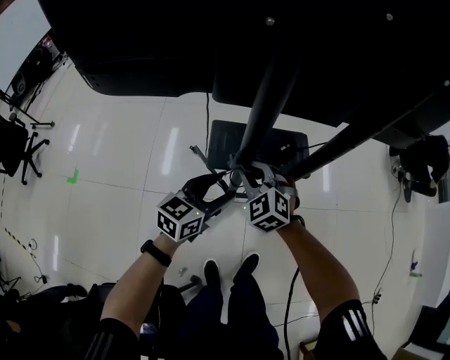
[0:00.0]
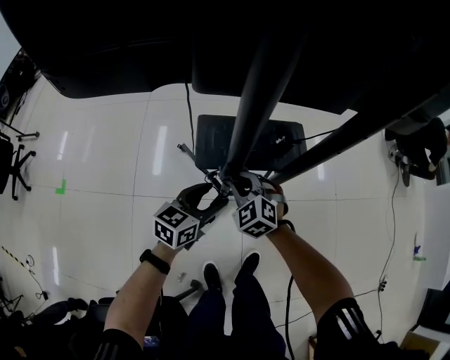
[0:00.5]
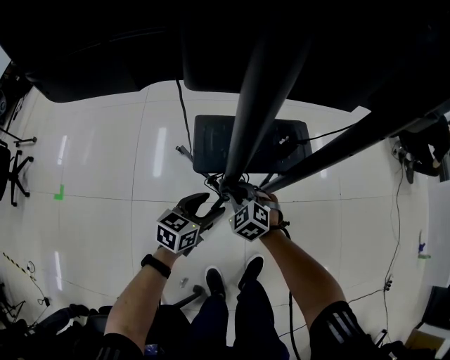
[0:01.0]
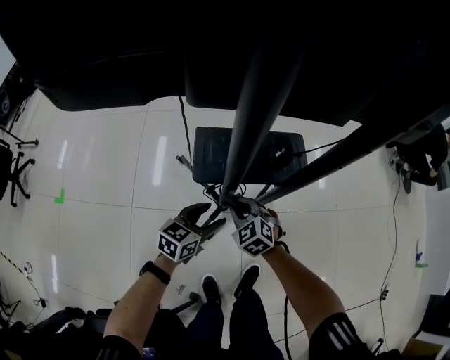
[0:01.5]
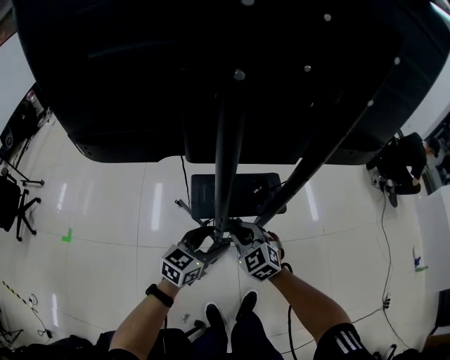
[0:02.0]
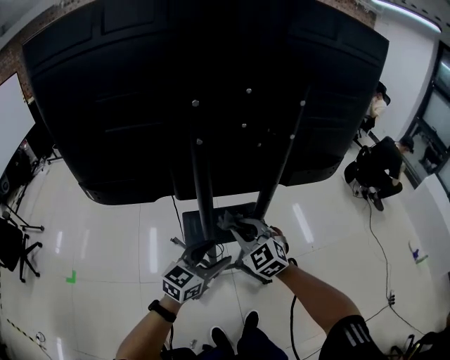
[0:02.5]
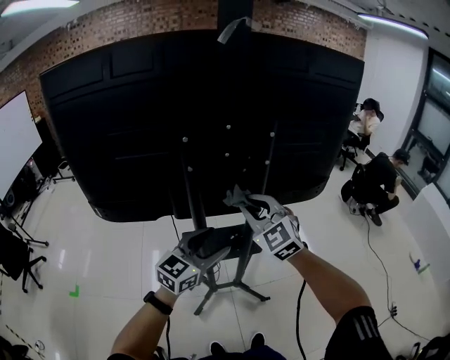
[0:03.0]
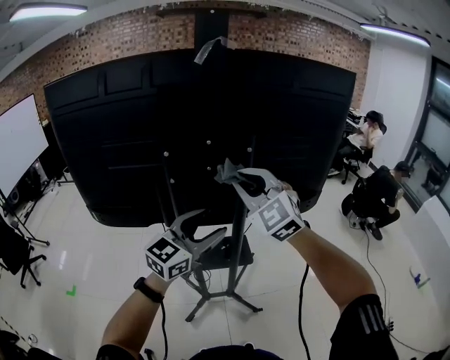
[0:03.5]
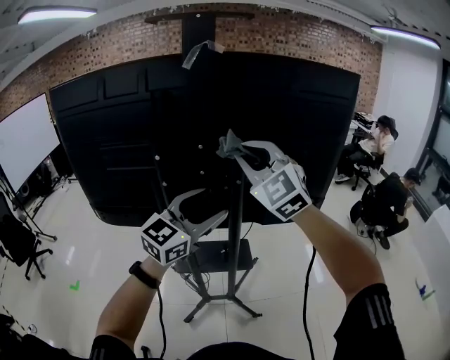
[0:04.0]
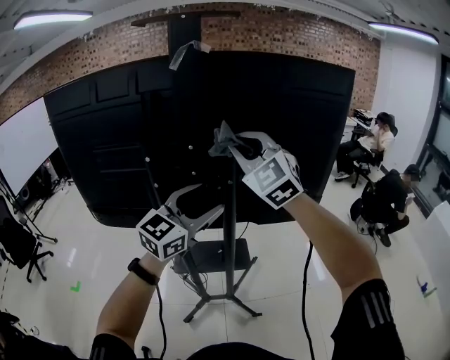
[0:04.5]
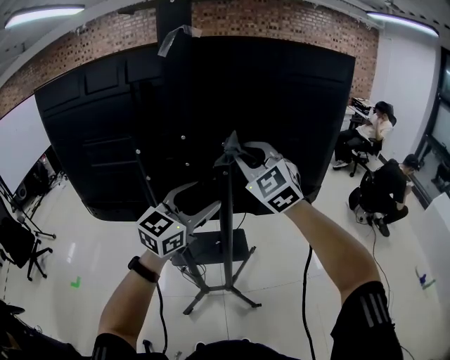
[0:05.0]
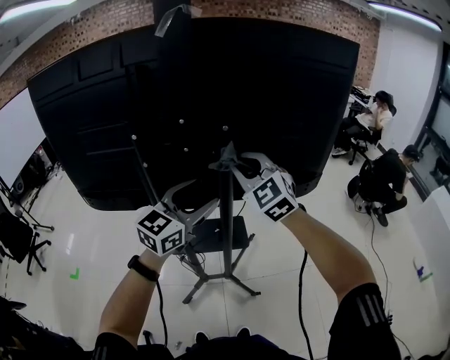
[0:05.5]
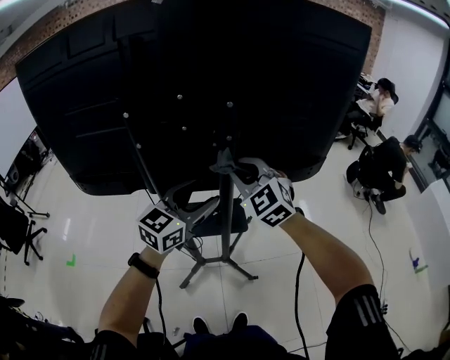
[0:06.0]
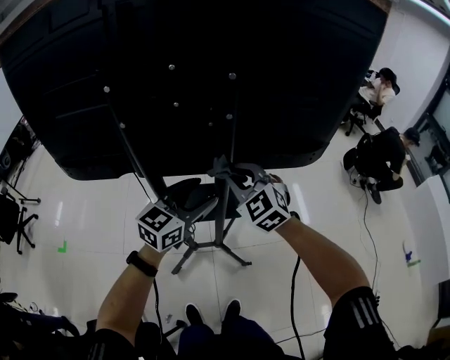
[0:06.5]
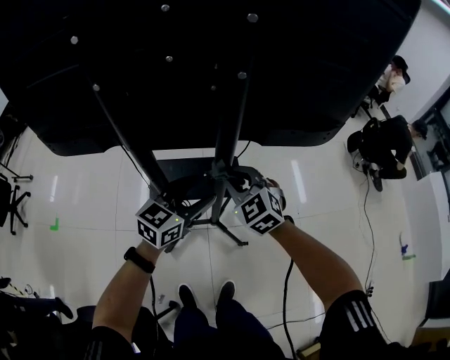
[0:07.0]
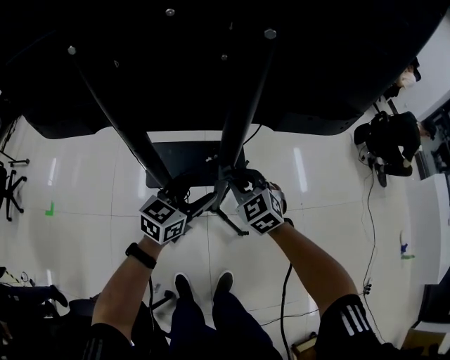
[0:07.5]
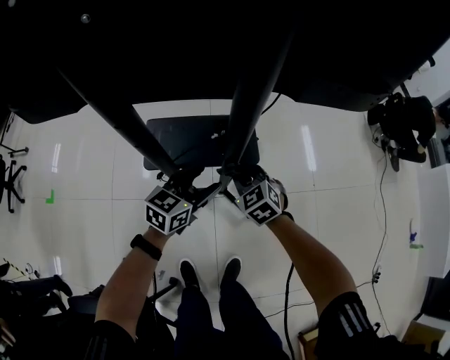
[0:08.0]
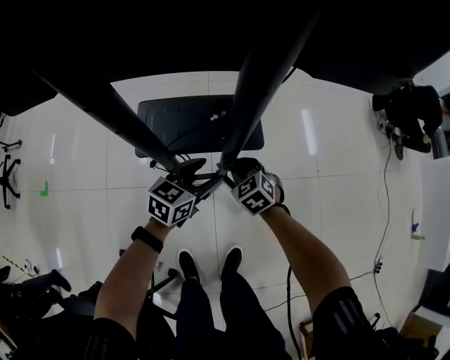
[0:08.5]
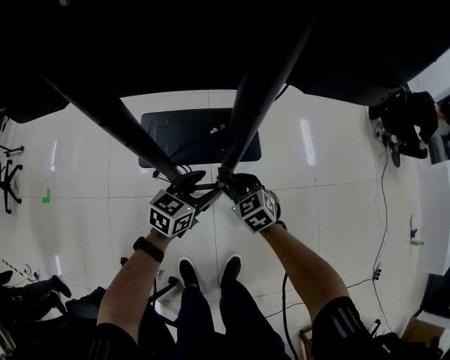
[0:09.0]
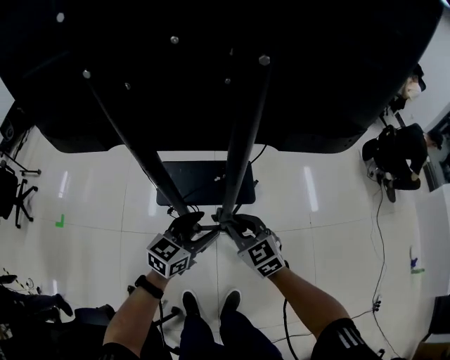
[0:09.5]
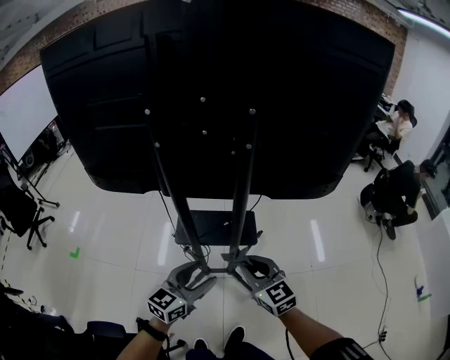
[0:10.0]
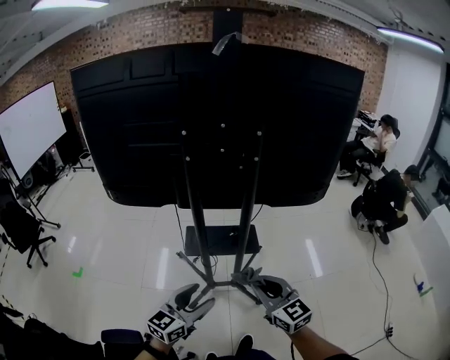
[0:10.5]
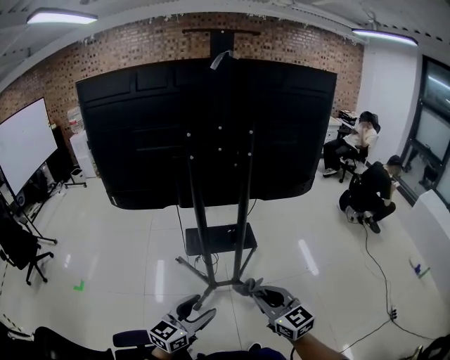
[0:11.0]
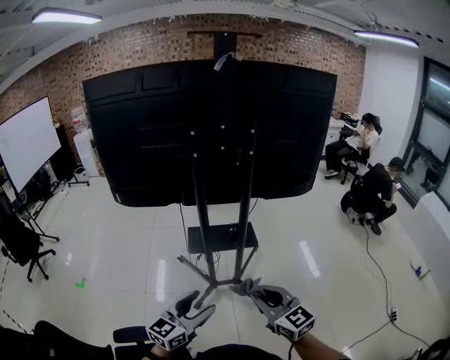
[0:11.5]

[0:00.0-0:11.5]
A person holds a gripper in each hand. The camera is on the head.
0:00.0 to 0:02.0: The right gripper goes downward and returns, some 20 cm each way. Meanwhile the left gripper travels downward and back again, about 20 cm each way.
0:02.0 to 0:04.0: Both grippers move upward, roughly 50 cm. The right gripper tilts its fingers roughly 30 degrees upward, while the left gripper swivels approximately 40 degrees.
0:04.0 to 0:06.0: The left gripper shifts roughly 15 cm downward. The right gripper shifts roughly 20 cm downward.
0:06.0 to 0:07.5: The grippers both shift downward by roughly 30 cm. The right gripper changes its angle by approximately 20 degrees.
0:07.5 to 0:09.5: The right gripper moves backward, about 10 cm, and goes downward and returns, approximately 25 cm each way, while the left gripper is displaced backward by roughly 5 cm, and moves approximately 20 cm downward and comes back.
0:09.5 to 0:11.5: The grippers both shift backward and upward by approximately 40 cm. The right gripper swivels approximately 20 degrees.

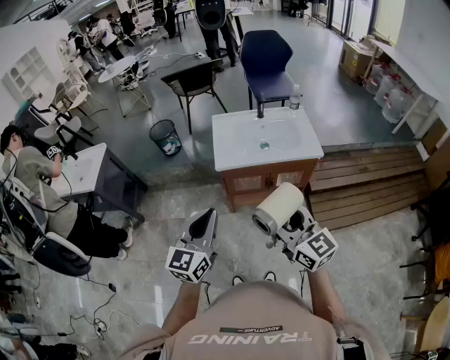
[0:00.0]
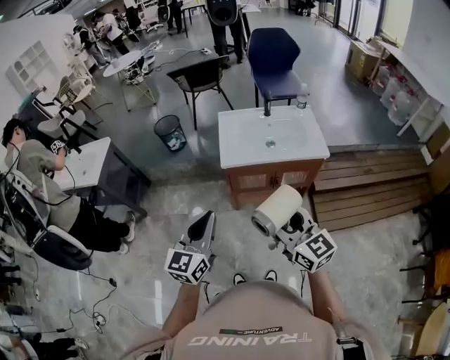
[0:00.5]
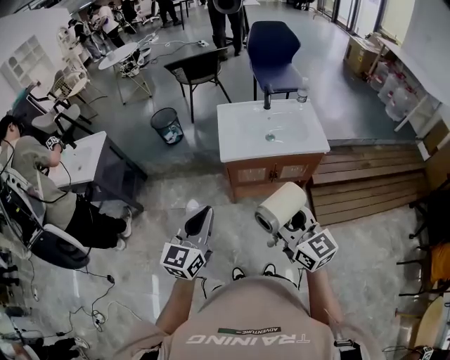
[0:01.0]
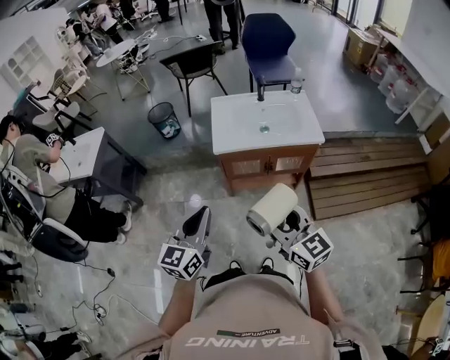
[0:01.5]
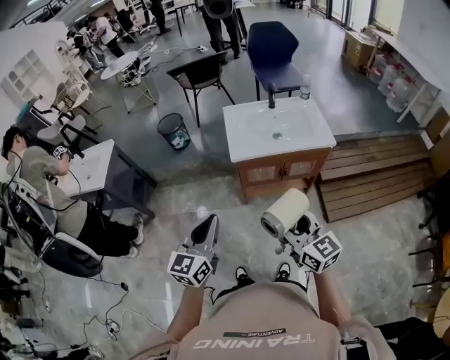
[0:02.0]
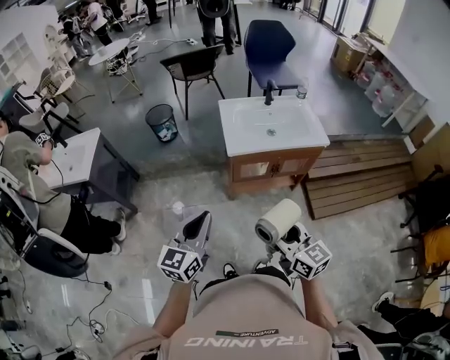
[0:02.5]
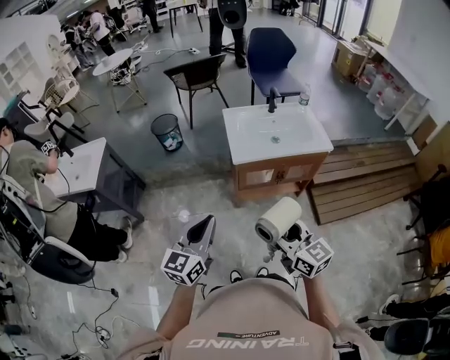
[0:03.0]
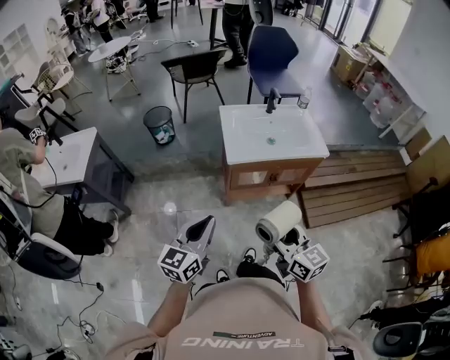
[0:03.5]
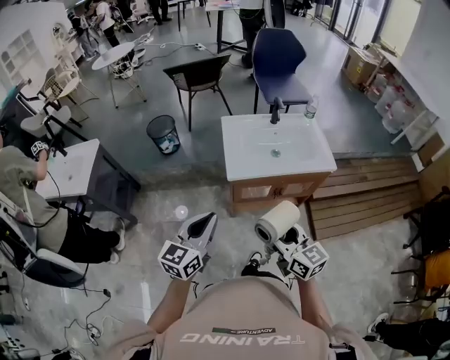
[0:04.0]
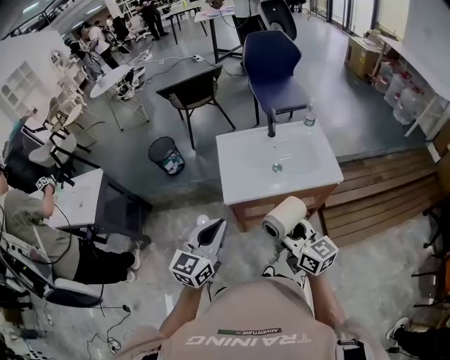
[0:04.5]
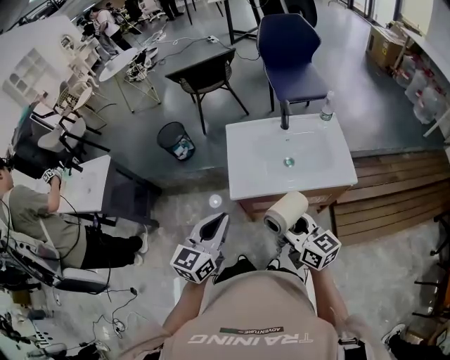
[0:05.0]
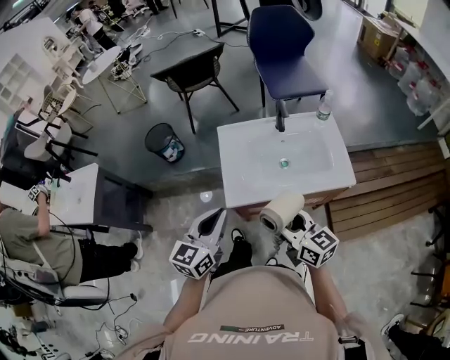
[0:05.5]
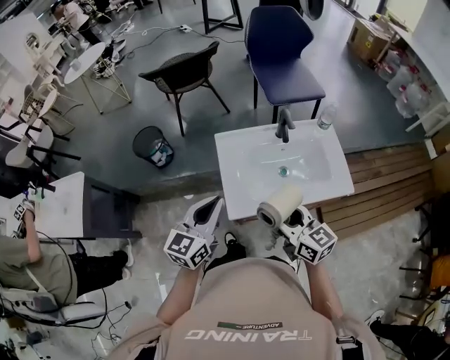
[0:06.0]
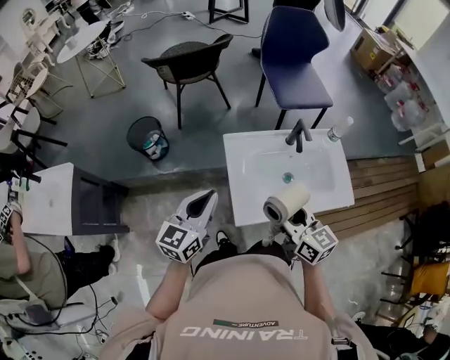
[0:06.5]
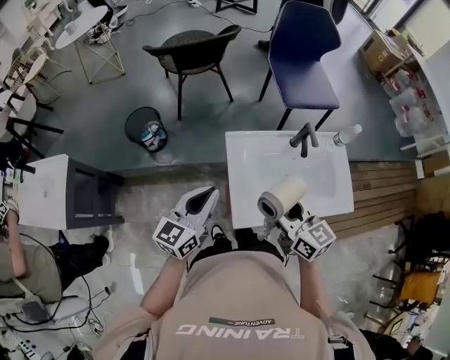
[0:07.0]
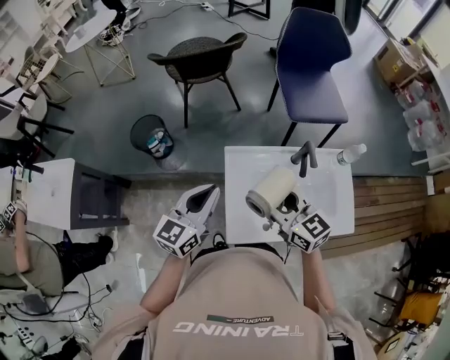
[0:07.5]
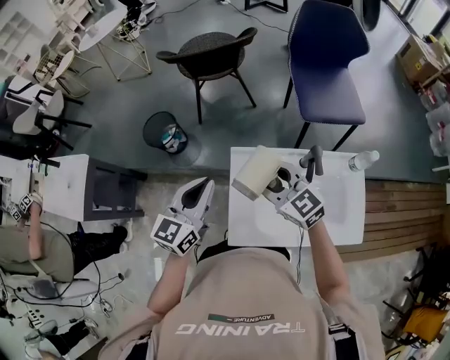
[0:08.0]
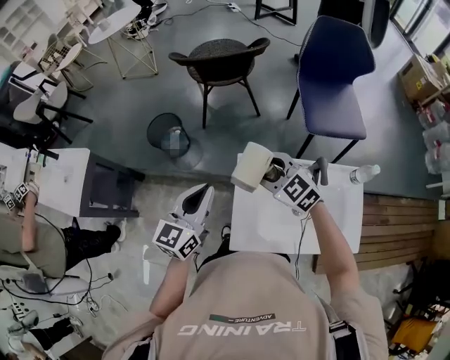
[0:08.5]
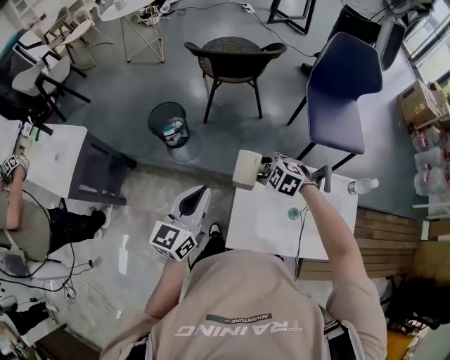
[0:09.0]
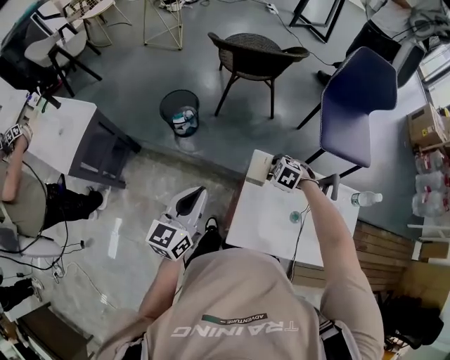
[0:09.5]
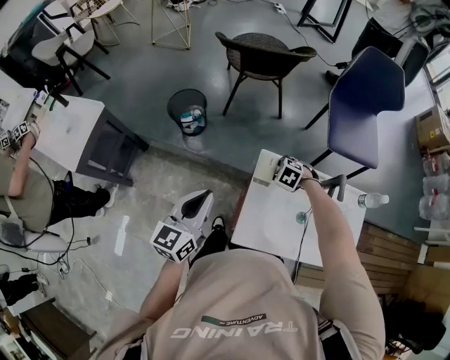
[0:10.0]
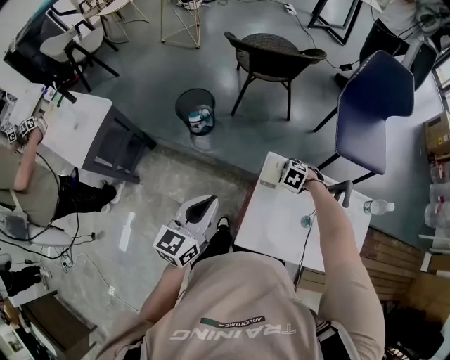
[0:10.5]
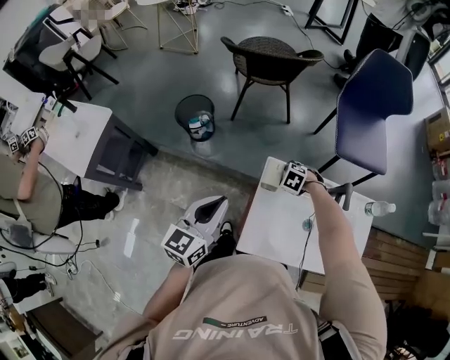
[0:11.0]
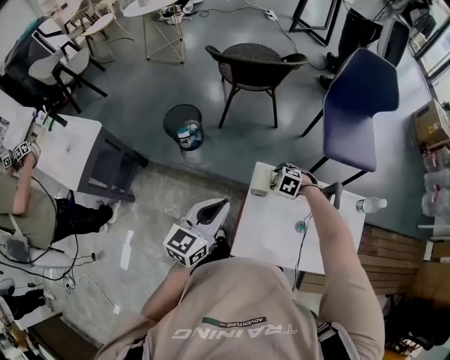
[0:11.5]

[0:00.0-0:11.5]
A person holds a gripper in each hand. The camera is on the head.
0:00.0 to 0:02.0: The two grippers go some 5 cm to the left.
0:02.0 to 0:04.0: Both grippers travel together forward, approximately 10 cm.
0:04.0 to 0:06.0: Both grippers travel together forward, about 30 cm.
0:06.0 to 0:07.5: The grippers both shift forward by roughly 15 cm.
0:07.5 to 0:09.5: The right gripper travels downward by approximately 25 cm, and points its fingers roughly 60 degrees further downward. Meanwhile the left gripper moves some 10 cm, and changes its angle by approximately 20 degrees.
0:09.5 to 0:11.5: The left gripper shifts by some 5 cm.

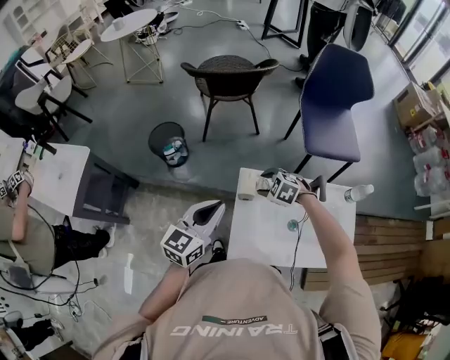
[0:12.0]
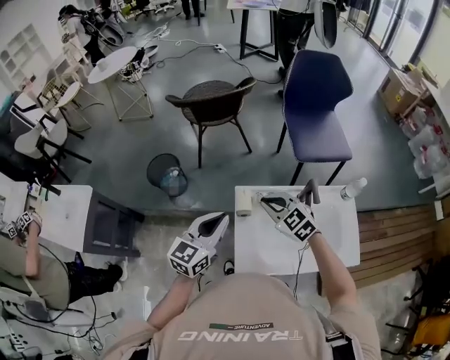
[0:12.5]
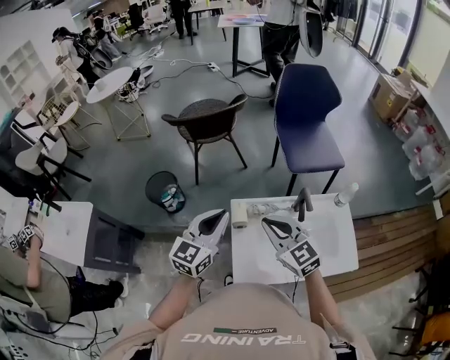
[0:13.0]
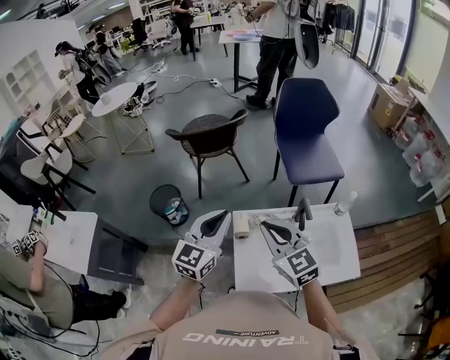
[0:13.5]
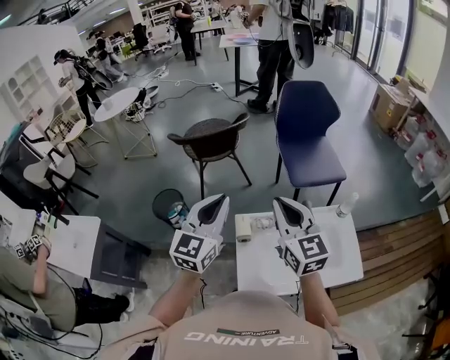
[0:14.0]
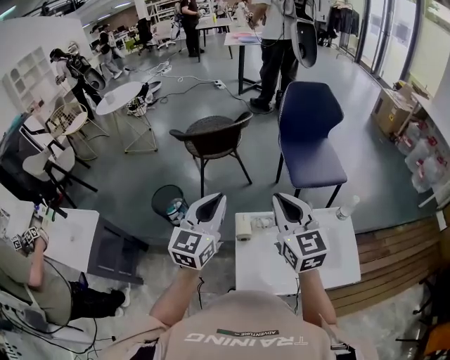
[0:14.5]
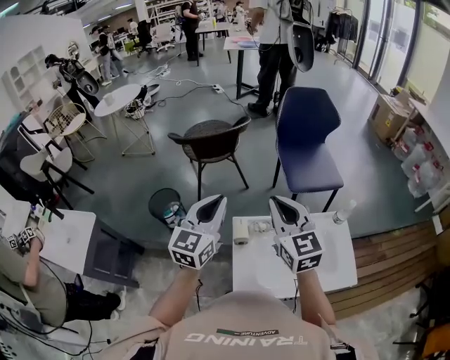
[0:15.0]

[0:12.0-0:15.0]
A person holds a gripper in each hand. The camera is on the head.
0:12.0 to 0:13.5: The left gripper moves upward and to the right, about 10 cm; the right gripper shifts approximately 25 cm upward, points its fingers approximately 50 degrees further upward, and closes.
0:13.5 to 0:15.0: The left gripper moves roughly 5 cm. The right gripper travels upward and forward by approximately 10 cm.
